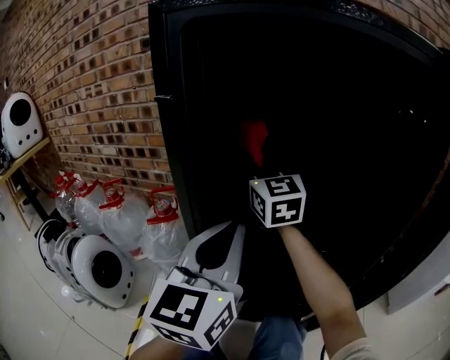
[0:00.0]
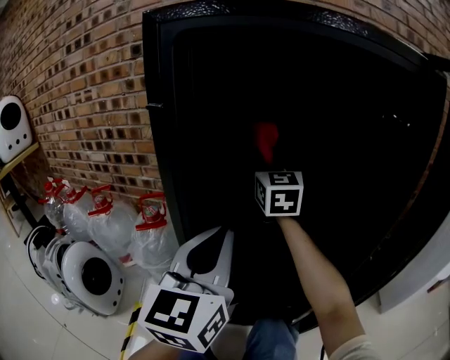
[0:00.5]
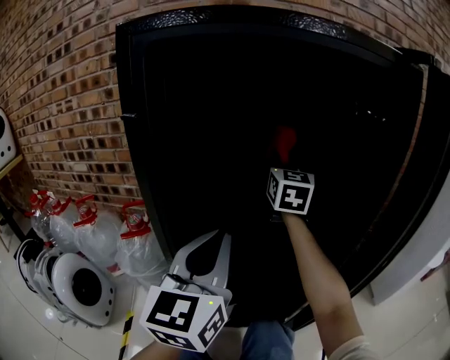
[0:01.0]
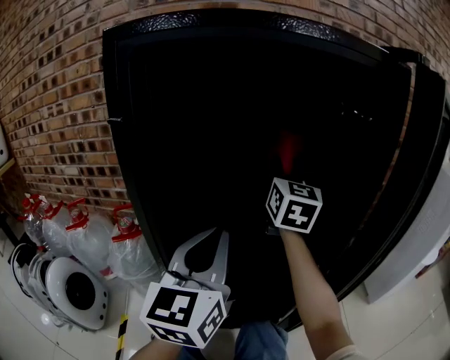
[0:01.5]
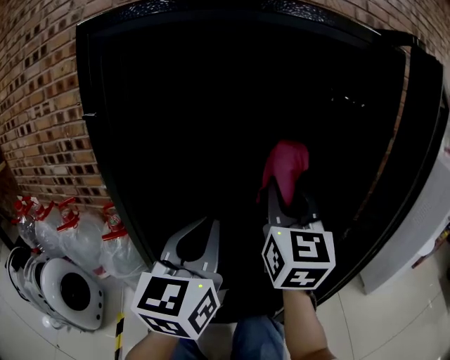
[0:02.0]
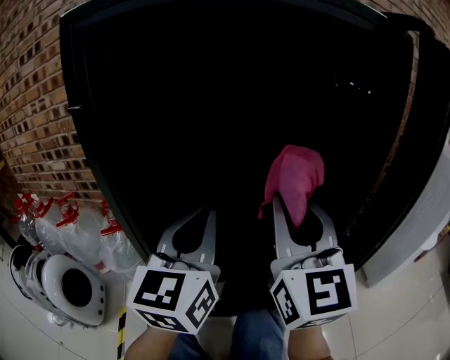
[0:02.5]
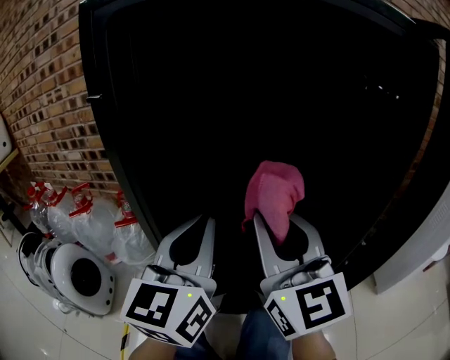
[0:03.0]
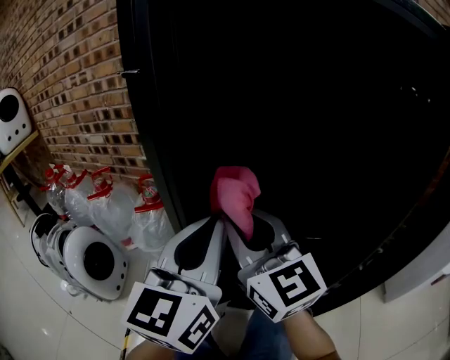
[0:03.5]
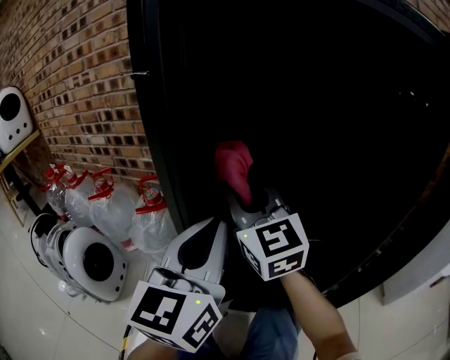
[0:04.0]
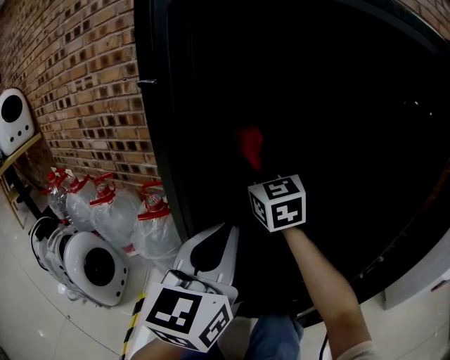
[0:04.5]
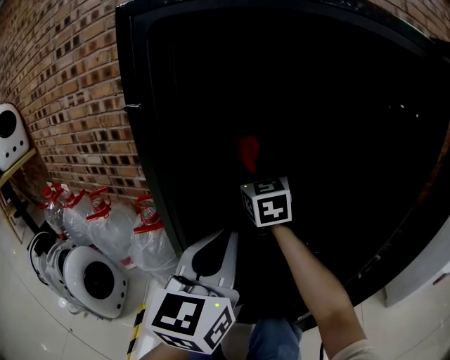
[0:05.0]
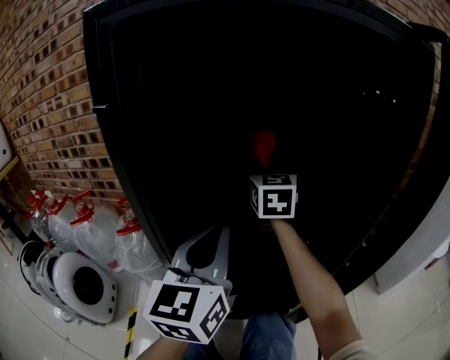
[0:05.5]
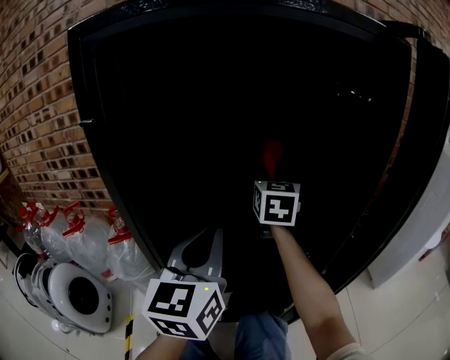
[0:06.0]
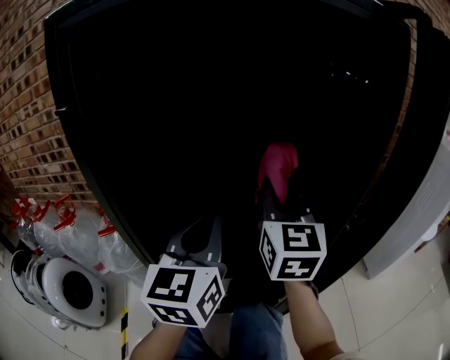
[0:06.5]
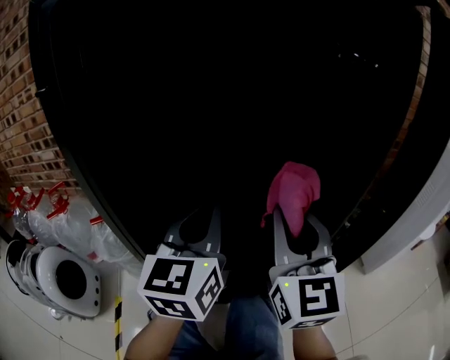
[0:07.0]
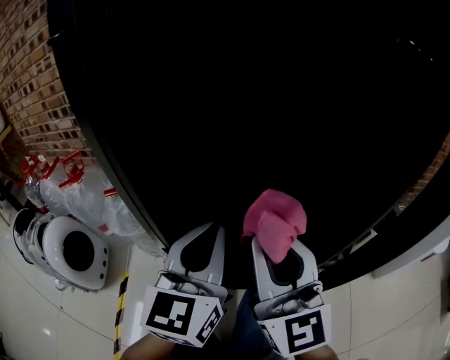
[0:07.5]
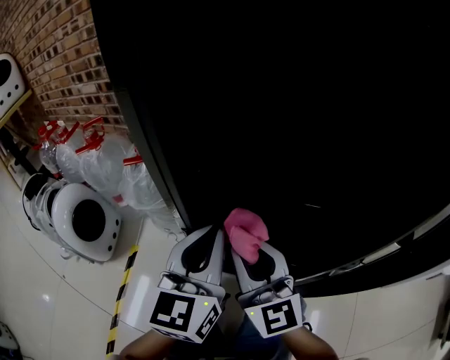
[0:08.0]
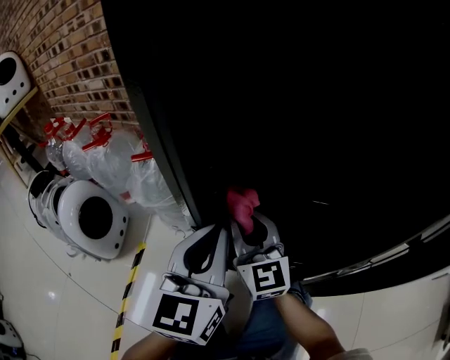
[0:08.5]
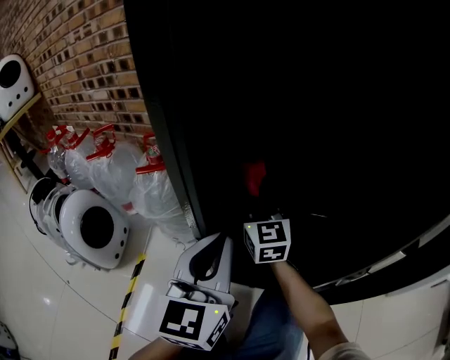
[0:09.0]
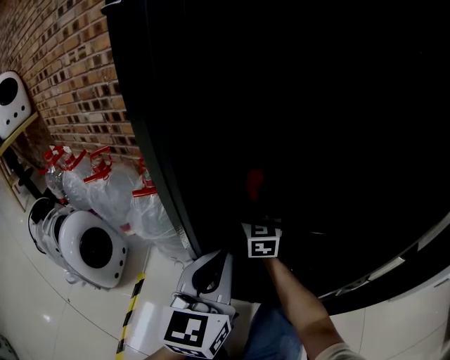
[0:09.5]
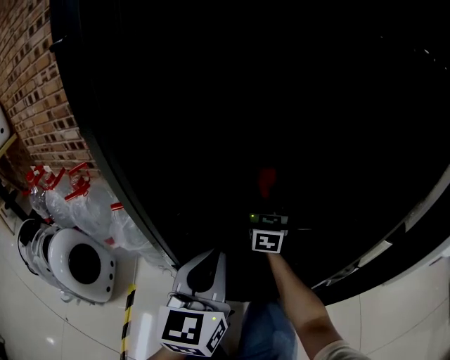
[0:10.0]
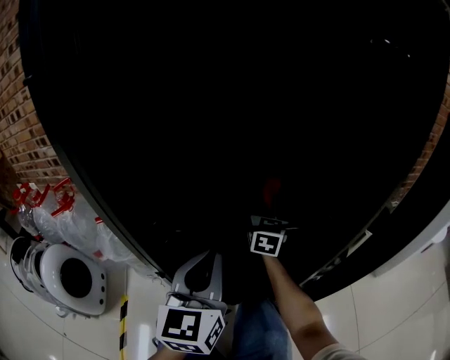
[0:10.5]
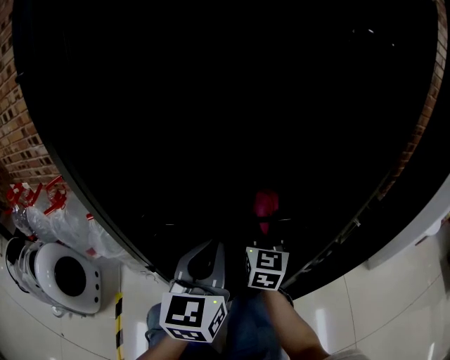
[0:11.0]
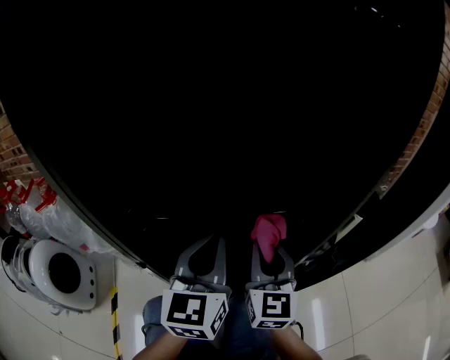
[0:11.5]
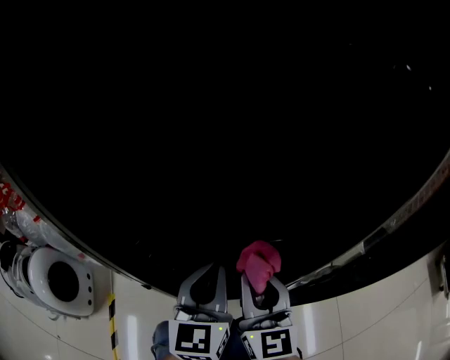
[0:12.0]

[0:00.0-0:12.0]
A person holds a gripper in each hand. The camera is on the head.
0:00.0 to 0:02.0: The left gripper heads to the right, covering about 5 cm; the right gripper is displaced to the right and backward by about 20 cm, and rotates approximately 30 degrees.
0:02.0 to 0:04.0: The right gripper shifts approximately 20 cm to the left, and turns by about 40 degrees, while the left gripper moves to the left, roughly 5 cm.
0:04.0 to 0:06.0: The right gripper moves to the right and forward, some 25 cm, and rotates roughly 40 degrees. Meanwhile the left gripper travels to the right by roughly 5 cm.
0:06.0 to 0:08.0: The right gripper moves approximately 35 cm, and swivels approximately 40 degrees. Meanwhile the left gripper travels downward by approximately 15 cm.
0:08.0 to 0:10.0: The right gripper moves forward and to the right, approximately 25 cm, and swivels roughly 40 degrees.
0:10.0 to 0:12.0: The right gripper is displaced backward by some 25 cm; the left gripper goes approximately 5 cm to the right.

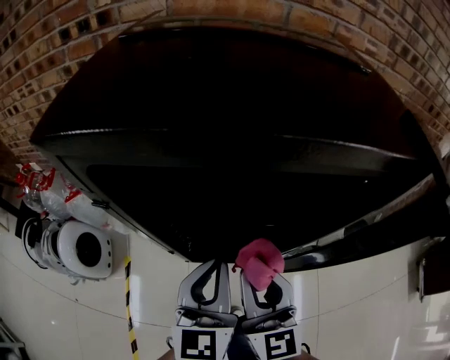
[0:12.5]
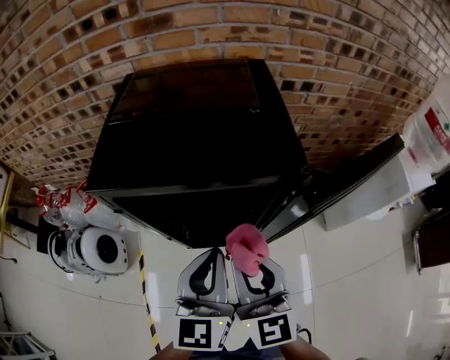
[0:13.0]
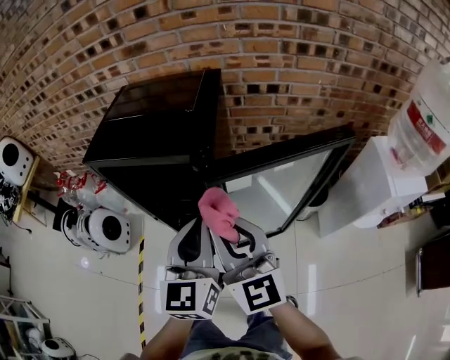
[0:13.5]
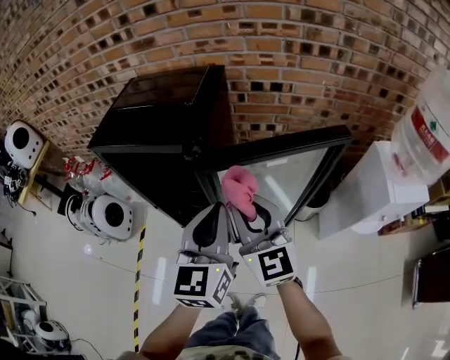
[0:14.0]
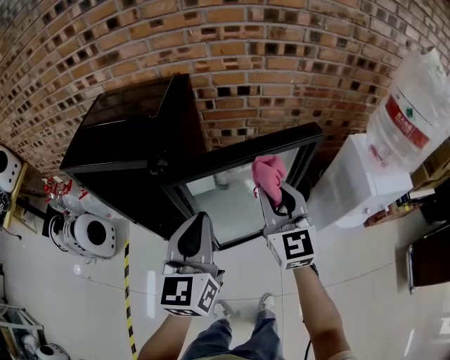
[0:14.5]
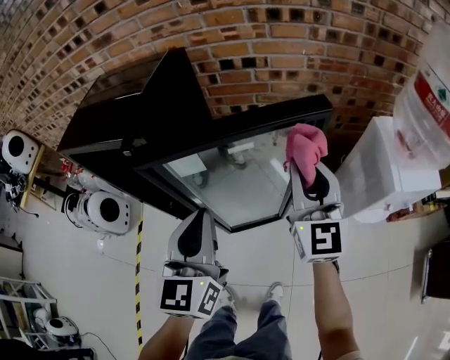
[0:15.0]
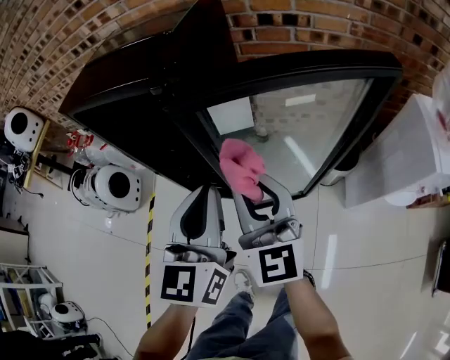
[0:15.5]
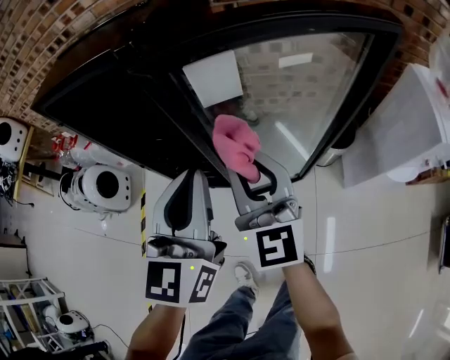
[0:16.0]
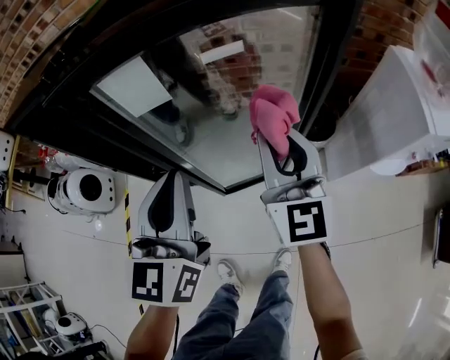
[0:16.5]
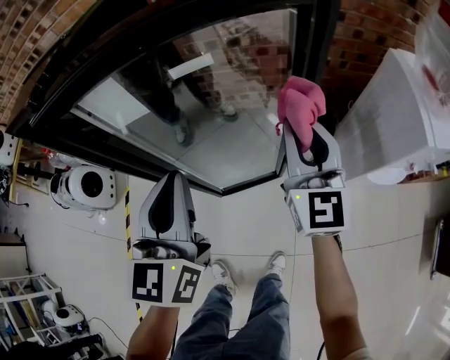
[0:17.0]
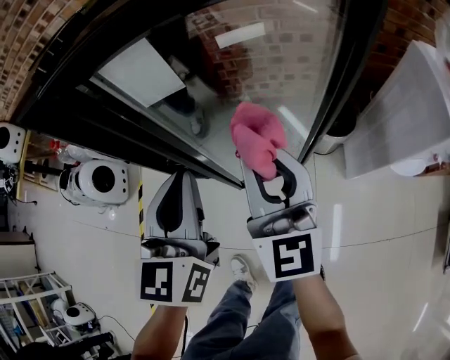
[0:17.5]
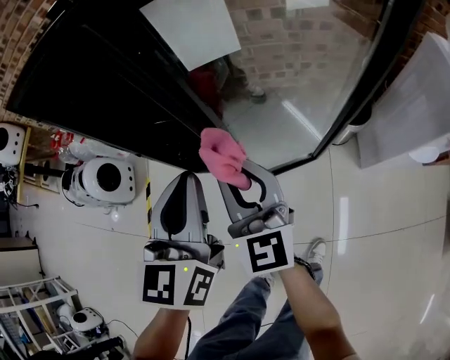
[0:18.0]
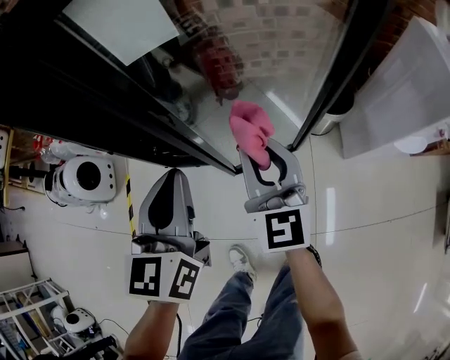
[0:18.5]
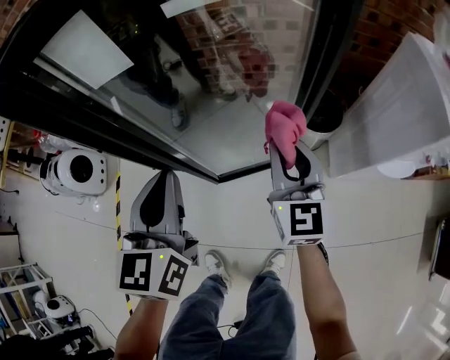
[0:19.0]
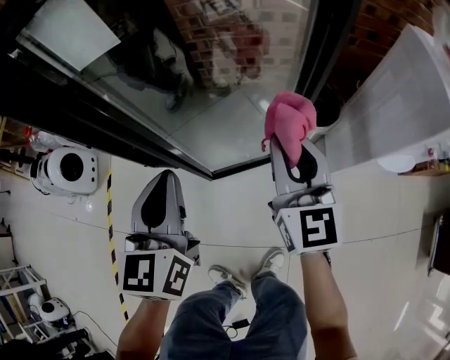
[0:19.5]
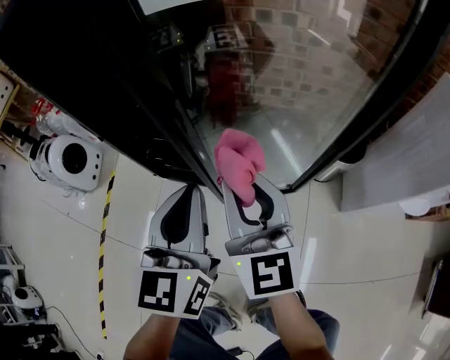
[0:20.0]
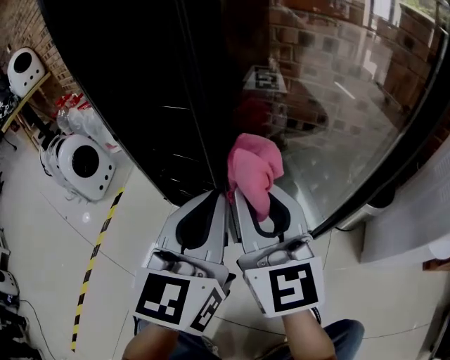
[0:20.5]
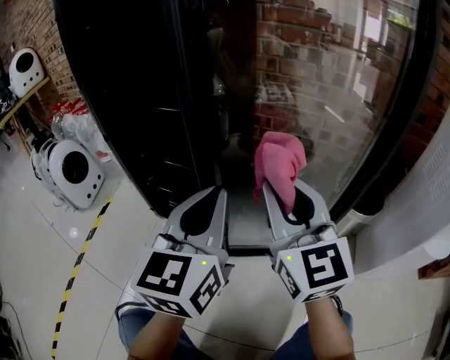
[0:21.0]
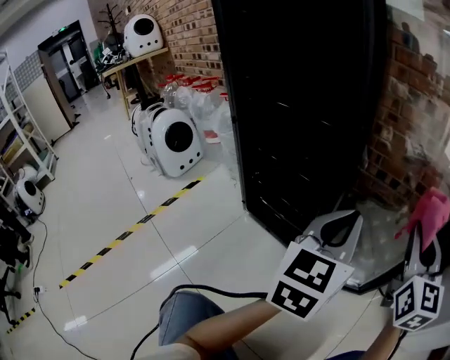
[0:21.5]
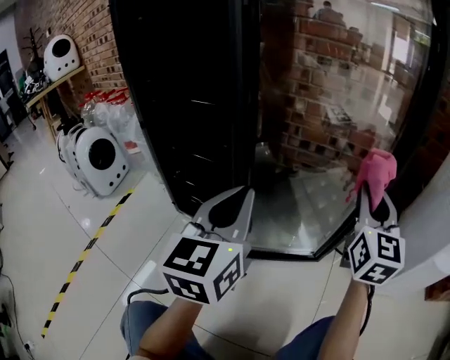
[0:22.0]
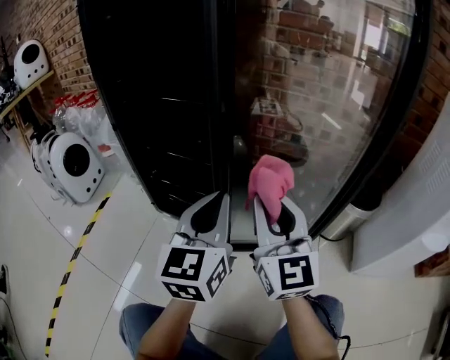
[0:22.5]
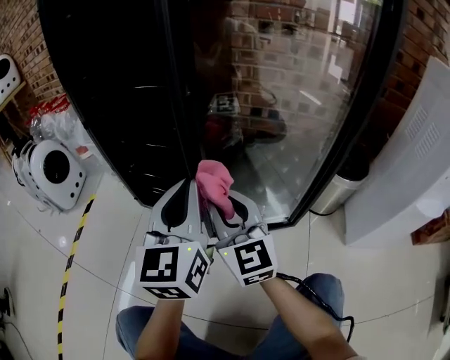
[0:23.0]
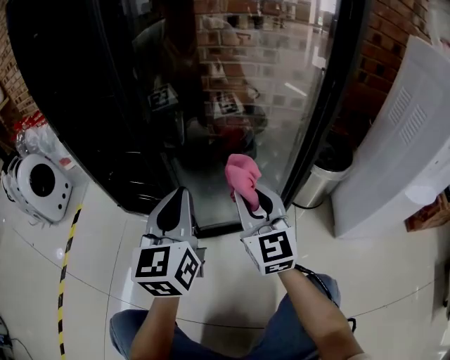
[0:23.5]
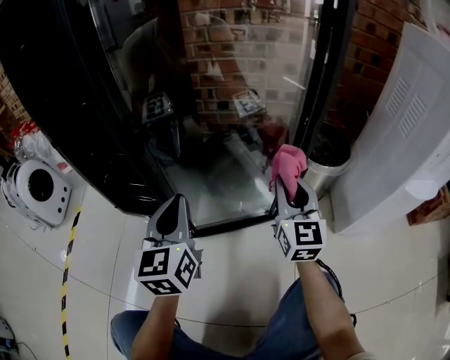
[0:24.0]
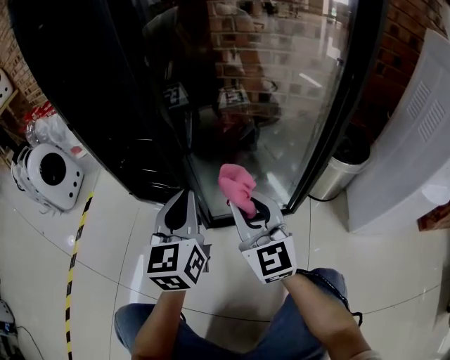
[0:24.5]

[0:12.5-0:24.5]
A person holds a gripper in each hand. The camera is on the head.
0:12.5 to 0:14.5: The two grippers go roughly 40 cm to the right and upward.
0:14.5 to 0:16.5: The right gripper swings left and right, about 25 cm each way, with 2 reversals, while the left gripper moves downward, roughly 15 cm.
0:16.5 to 0:18.5: The left gripper moves left and right over roughly 15 cm, changing direction 2 times, while the right gripper swings left and right, some 30 cm each way, with 2 reversals.
0:18.5 to 0:20.5: The grippers both shift downward by about 10 cm. The right gripper moves approximately 15 cm to the right and comes back, and swivels some 20 degrees.
0:20.5 to 0:22.5: Both grippers move downward, some 10 cm. The right gripper reaches approximately 25 cm to the right, then returns.
0:22.5 to 0:24.5: The left gripper moves downward, about 10 cm. The right gripper moves left and right over roughly 25 cm, changing direction 2 times.

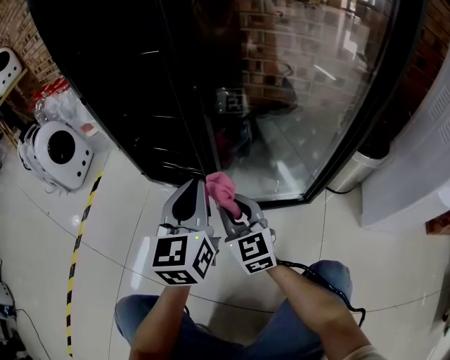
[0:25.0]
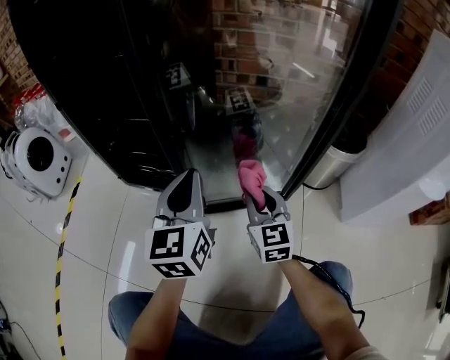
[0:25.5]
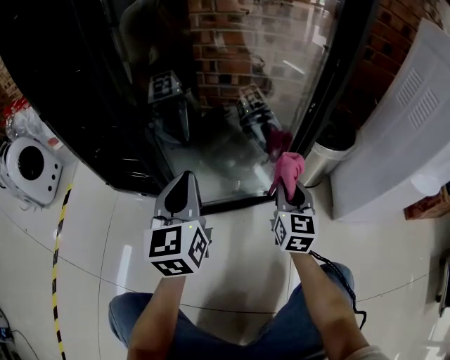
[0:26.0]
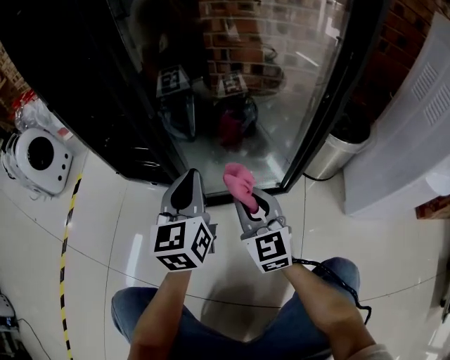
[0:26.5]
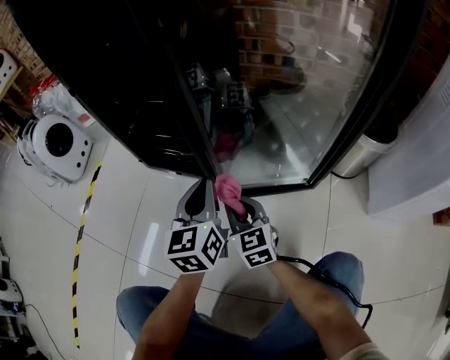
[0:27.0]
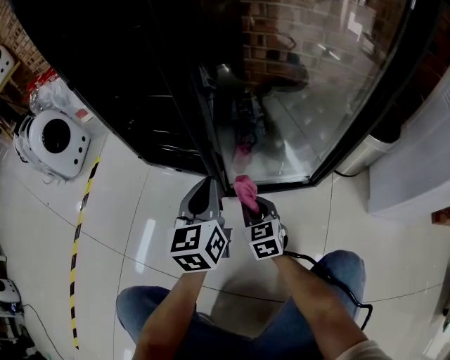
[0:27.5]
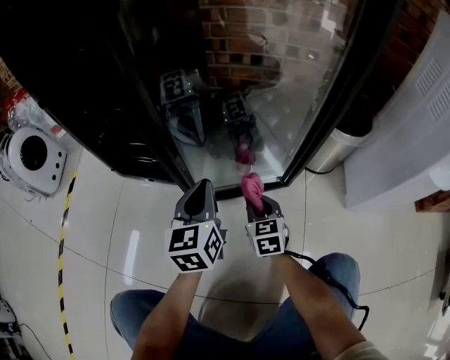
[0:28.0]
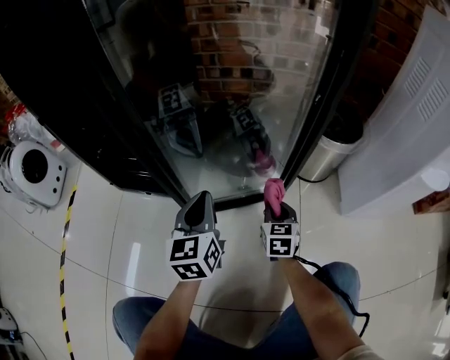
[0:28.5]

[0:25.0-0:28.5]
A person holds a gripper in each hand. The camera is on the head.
0:25.0 to 0:27.0: Both grippers move downward, some 10 cm. The right gripper reaches some 30 cm to the right, then returns.
0:27.0 to 0:28.5: The right gripper goes some 25 cm to the right, and changes its angle by some 30 degrees. Meanwhile the left gripper travels to the right by roughly 10 cm.
